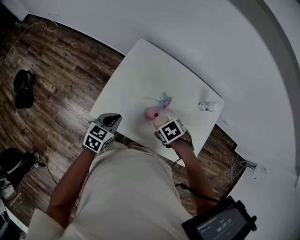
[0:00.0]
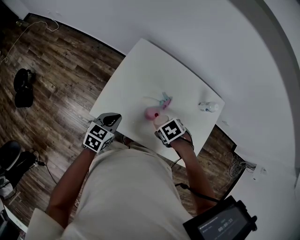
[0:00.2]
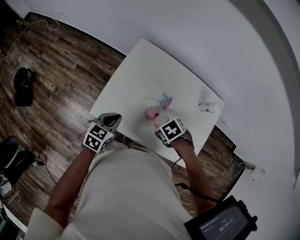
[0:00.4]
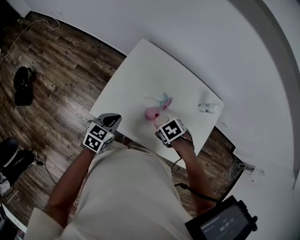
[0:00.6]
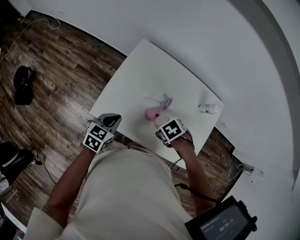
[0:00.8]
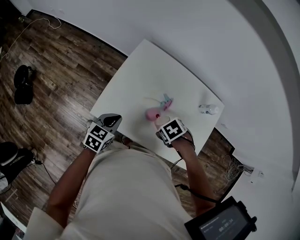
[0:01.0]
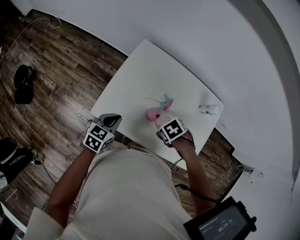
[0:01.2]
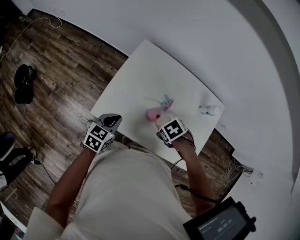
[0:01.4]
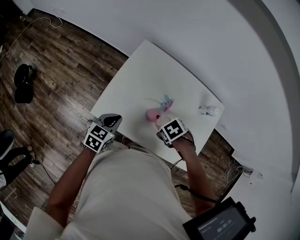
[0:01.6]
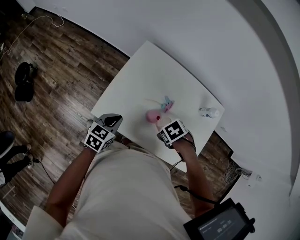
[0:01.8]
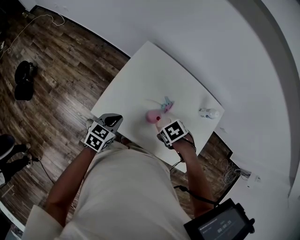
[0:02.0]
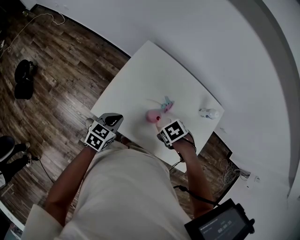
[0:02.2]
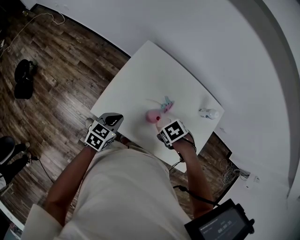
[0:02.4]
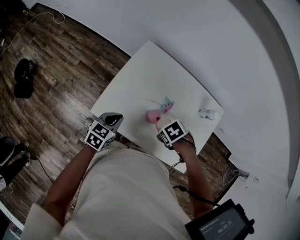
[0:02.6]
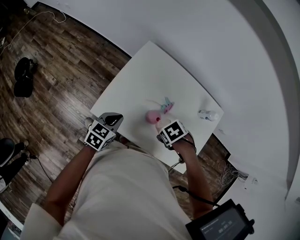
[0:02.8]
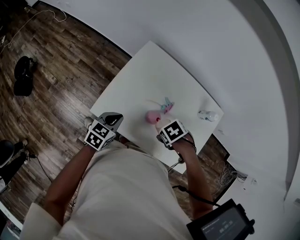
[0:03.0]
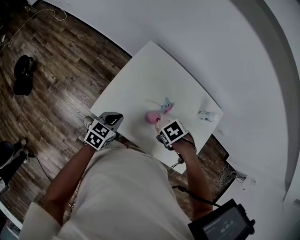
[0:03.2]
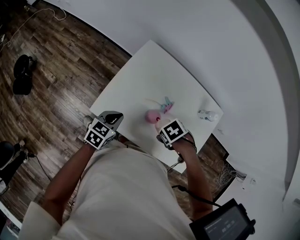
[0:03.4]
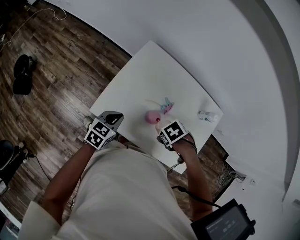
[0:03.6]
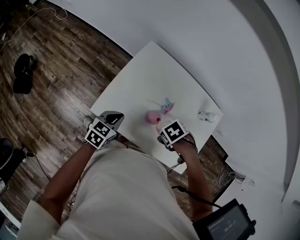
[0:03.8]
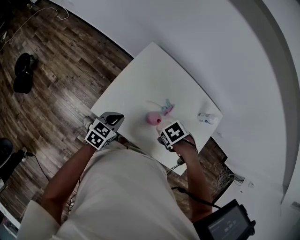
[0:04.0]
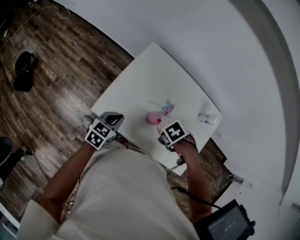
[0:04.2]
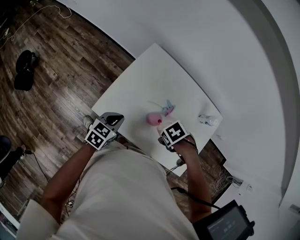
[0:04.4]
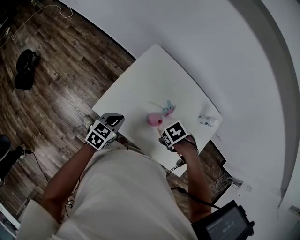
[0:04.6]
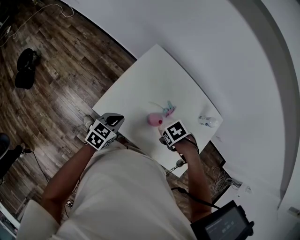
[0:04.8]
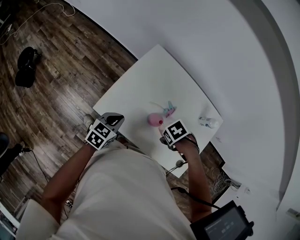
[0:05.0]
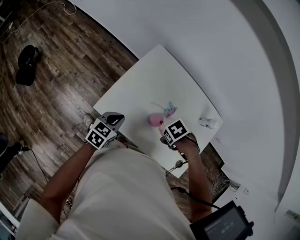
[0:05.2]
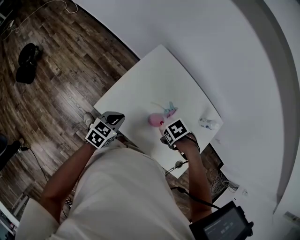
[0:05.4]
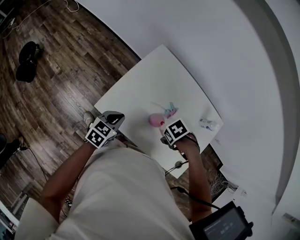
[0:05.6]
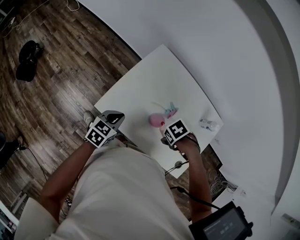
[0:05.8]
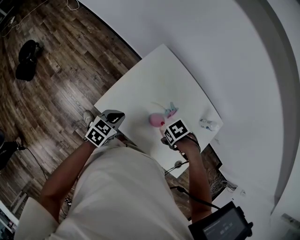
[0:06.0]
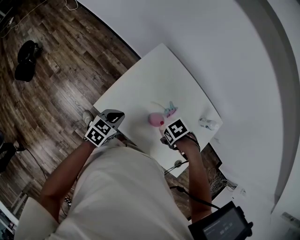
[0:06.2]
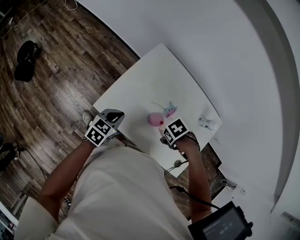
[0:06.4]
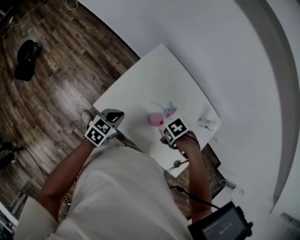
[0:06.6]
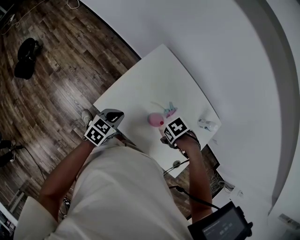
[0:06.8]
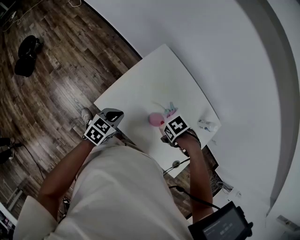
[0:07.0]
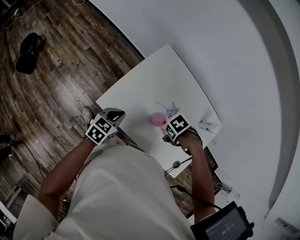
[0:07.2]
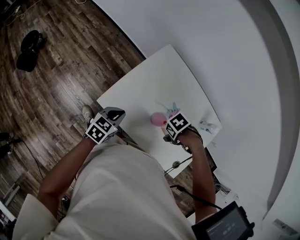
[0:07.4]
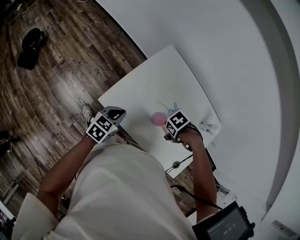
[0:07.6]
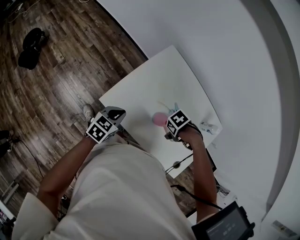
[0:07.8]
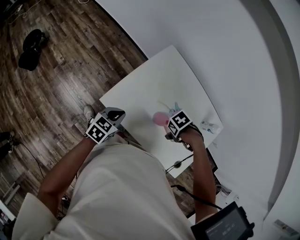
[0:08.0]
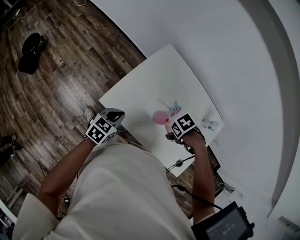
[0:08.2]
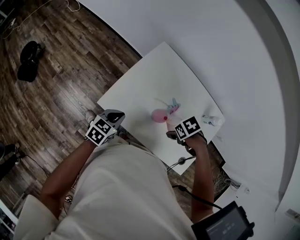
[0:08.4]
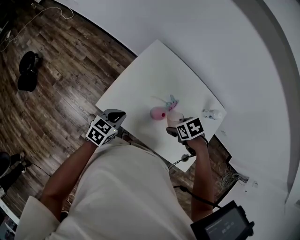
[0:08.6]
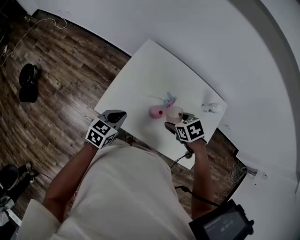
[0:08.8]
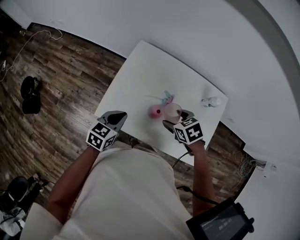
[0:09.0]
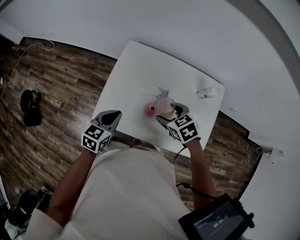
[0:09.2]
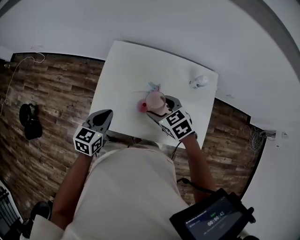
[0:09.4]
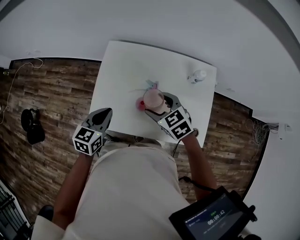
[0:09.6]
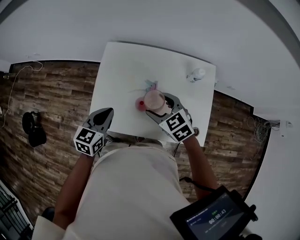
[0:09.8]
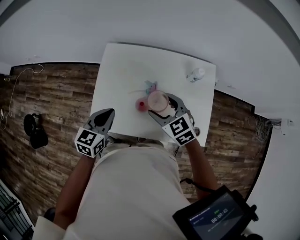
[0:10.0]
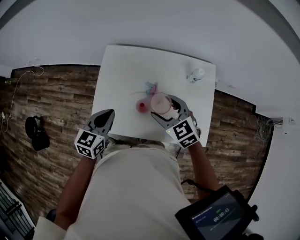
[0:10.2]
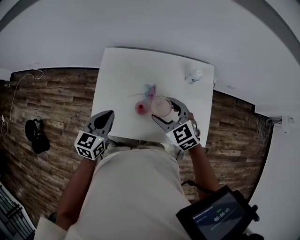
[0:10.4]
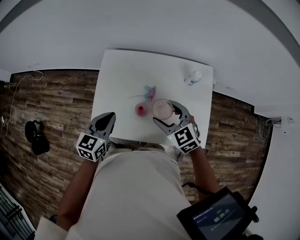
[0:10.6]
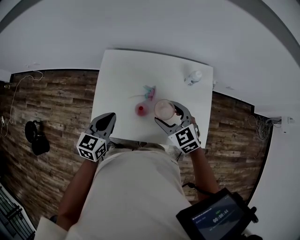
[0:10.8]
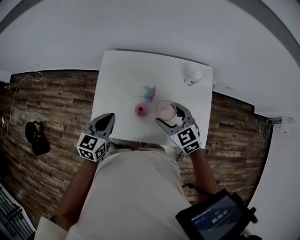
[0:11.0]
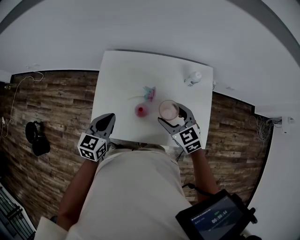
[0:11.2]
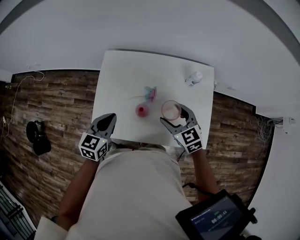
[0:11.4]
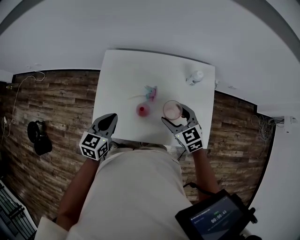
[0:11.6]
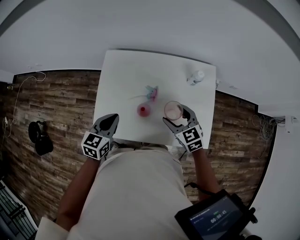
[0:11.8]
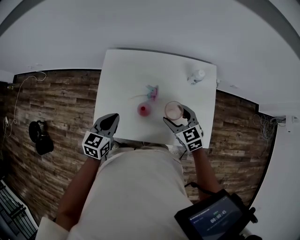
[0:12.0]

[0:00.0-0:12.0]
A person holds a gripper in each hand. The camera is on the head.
0:00.0 to 0:01.6: The two grippers keep their place.
0:01.6 to 0:03.0: The two grippers keep their place.
0:03.0 to 0:04.4: The two grippers keep their place.
0:04.4 to 0:07.6: There are only small adjustments of the grippers.
0:07.6 to 0:09.0: The left gripper ends up approximately 10 cm from where it was. Meanwhile the right gripper heads upward, covering approximately 5 cm, and changes its angle by about 60 degrees.
0:09.0 to 0:10.4: Both grippers move upward, approximately 5 cm. The right gripper changes its angle by approximately 40 degrees.
0:10.4 to 0:12.0: The right gripper travels downward and to the right by about 10 cm.

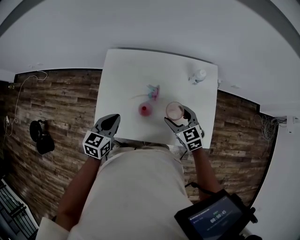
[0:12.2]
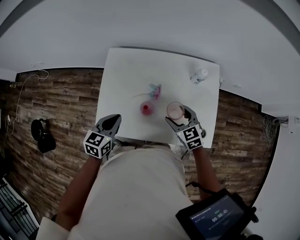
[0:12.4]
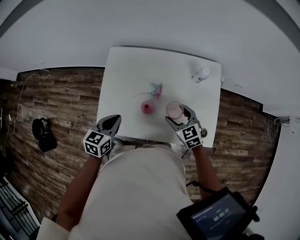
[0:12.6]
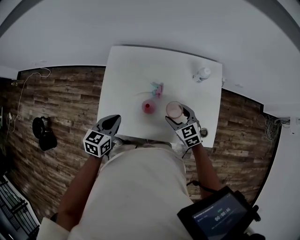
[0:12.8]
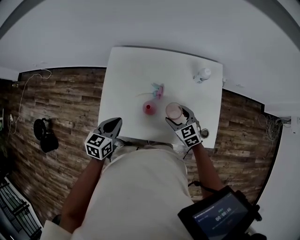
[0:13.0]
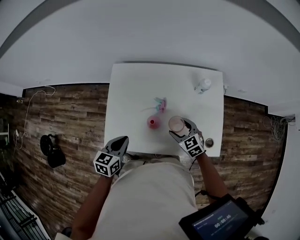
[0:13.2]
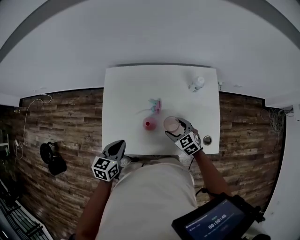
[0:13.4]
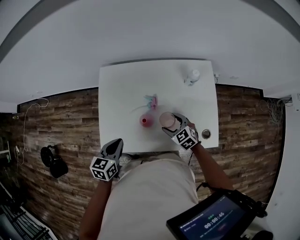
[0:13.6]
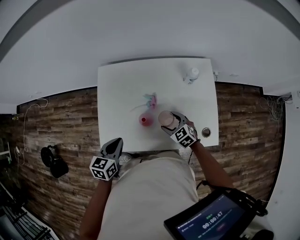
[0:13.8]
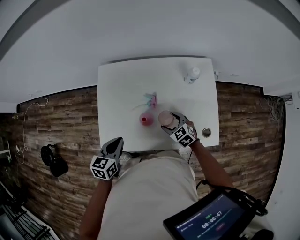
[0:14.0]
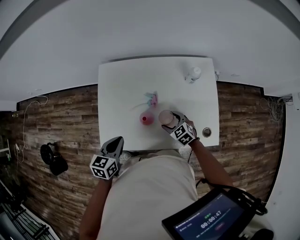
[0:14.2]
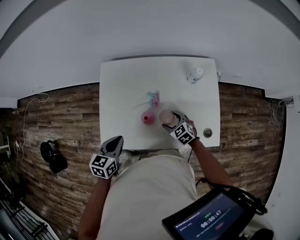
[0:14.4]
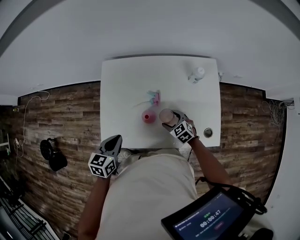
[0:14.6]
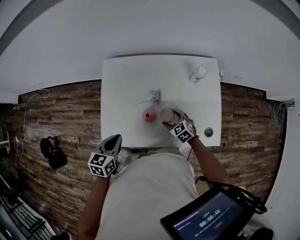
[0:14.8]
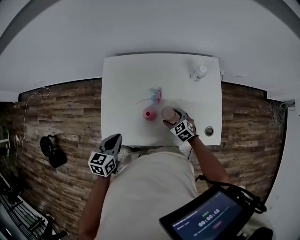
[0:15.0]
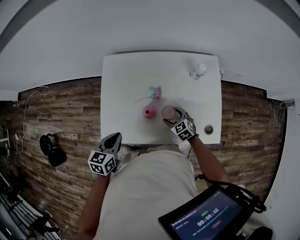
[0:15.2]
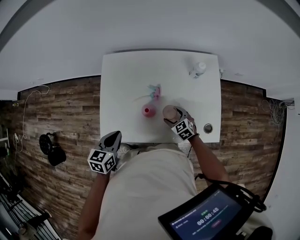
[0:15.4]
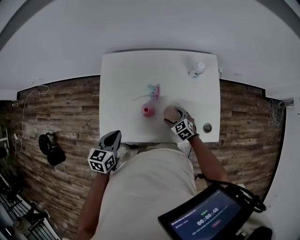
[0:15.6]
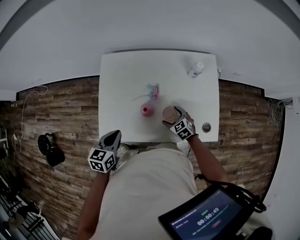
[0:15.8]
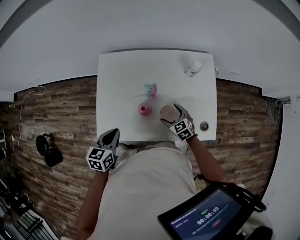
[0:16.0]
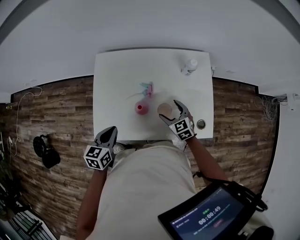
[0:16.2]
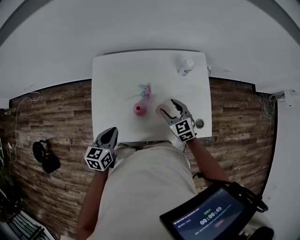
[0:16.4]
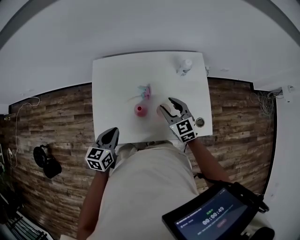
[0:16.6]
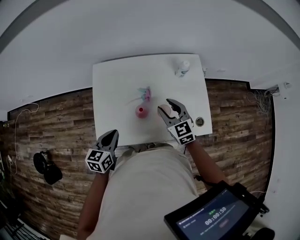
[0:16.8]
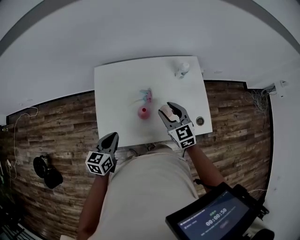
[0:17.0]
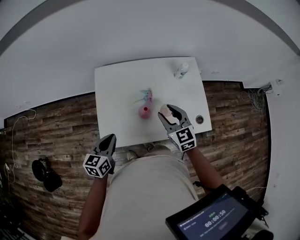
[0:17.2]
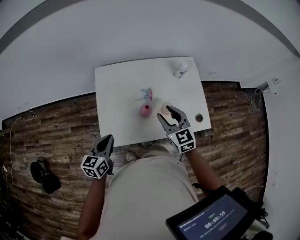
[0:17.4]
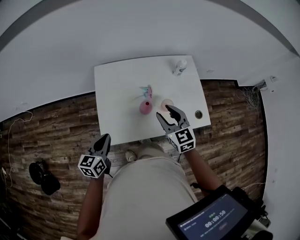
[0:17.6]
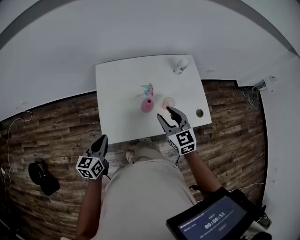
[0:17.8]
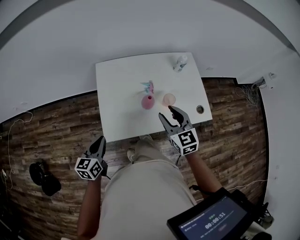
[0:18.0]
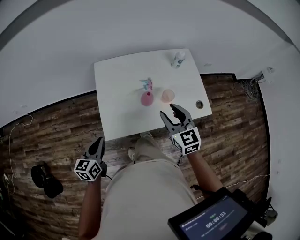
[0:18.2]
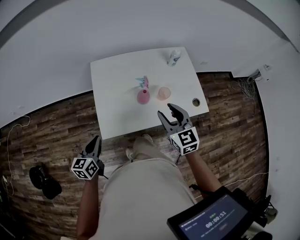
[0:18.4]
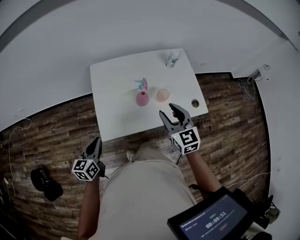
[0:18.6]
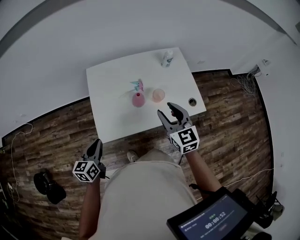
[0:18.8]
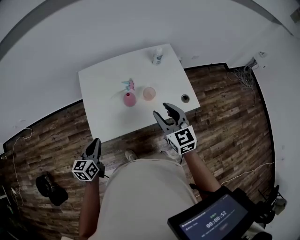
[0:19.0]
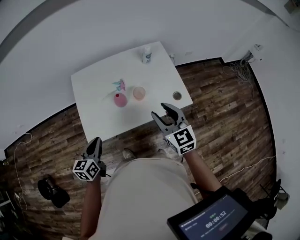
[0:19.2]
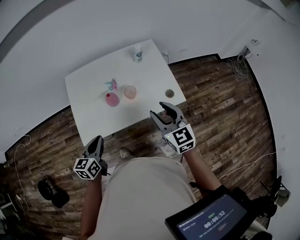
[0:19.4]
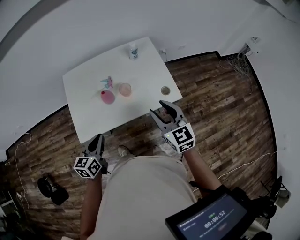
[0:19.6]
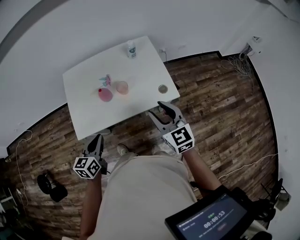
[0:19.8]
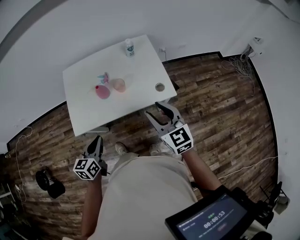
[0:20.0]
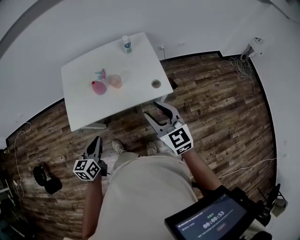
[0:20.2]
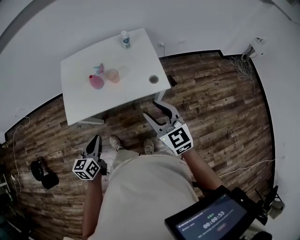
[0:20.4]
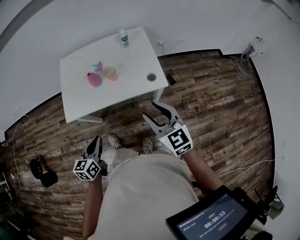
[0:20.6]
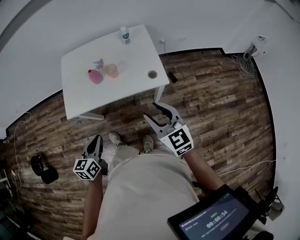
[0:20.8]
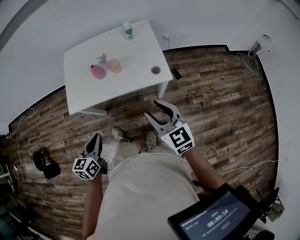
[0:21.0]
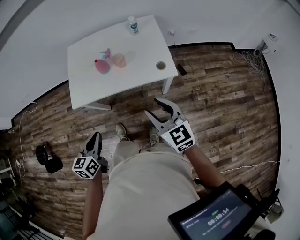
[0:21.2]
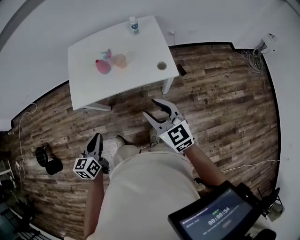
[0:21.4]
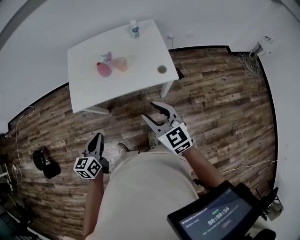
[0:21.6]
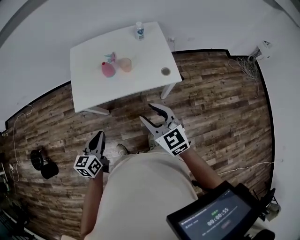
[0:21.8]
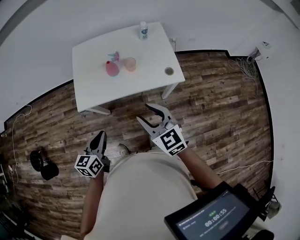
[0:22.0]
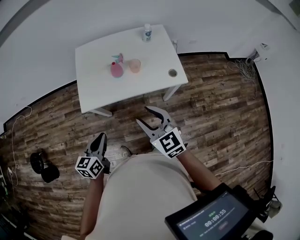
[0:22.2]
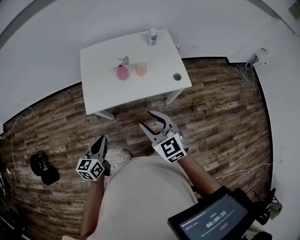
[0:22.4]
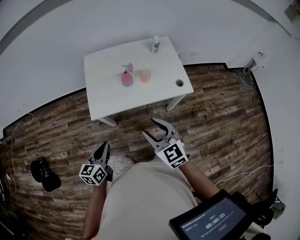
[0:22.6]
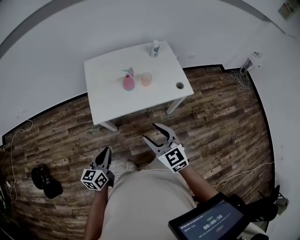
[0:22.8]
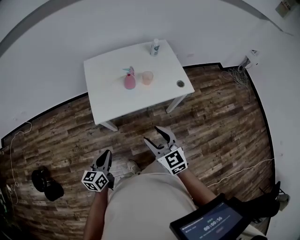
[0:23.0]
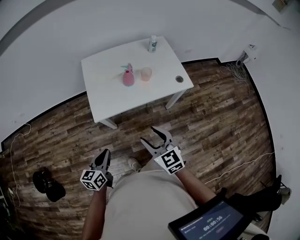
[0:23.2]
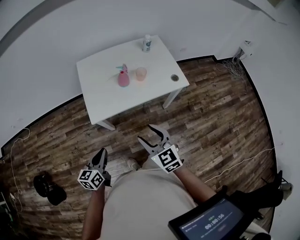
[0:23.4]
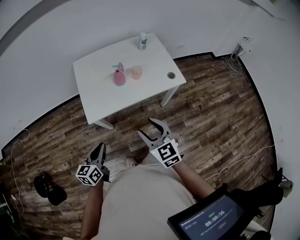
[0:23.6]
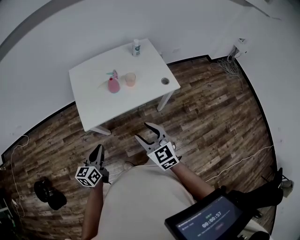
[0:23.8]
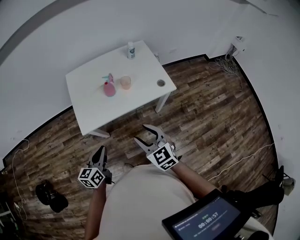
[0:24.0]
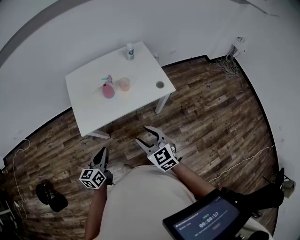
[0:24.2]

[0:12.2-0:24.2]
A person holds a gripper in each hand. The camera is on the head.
0:12.2 to 0:13.8: The right gripper travels downward by approximately 10 cm.
0:13.8 to 0:15.2: The right gripper moves downward, approximately 5 cm.
0:15.2 to 0:16.6: The right gripper goes about 20 cm upward, rotates some 20 degrees, and closes.
0:16.6 to 0:18.2: The left gripper travels to the left and backward by some 20 cm, while the right gripper is displaced backward, upward and to the left by approximately 20 cm.
0:18.2 to 0:19.8: Both grippers move to the right, approximately 25 cm.
0:19.8 to 0:21.2: The two grippers go roughly 15 cm backward.
0:21.2 to 0:22.6: Both grippers move to the left, roughly 20 cm.
0:22.6 to 0:24.2: The grippers both shift to the right by some 5 cm.
